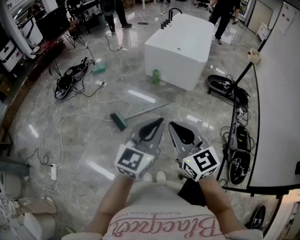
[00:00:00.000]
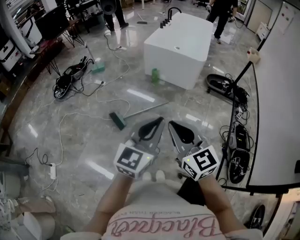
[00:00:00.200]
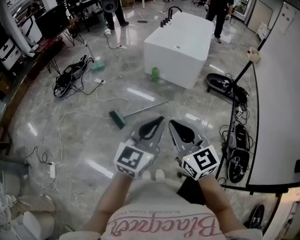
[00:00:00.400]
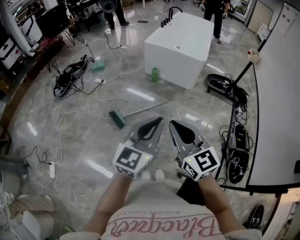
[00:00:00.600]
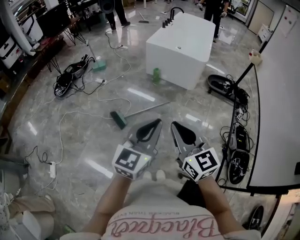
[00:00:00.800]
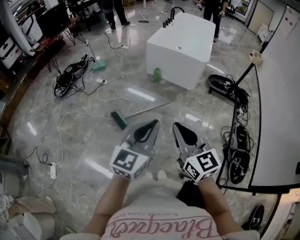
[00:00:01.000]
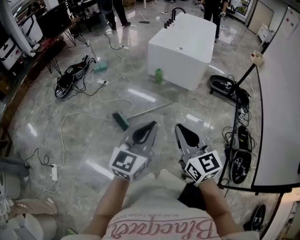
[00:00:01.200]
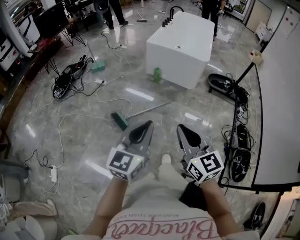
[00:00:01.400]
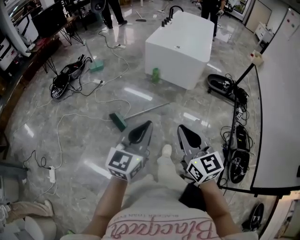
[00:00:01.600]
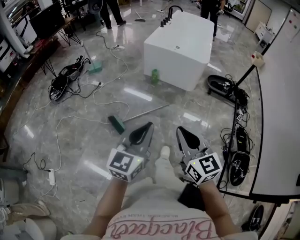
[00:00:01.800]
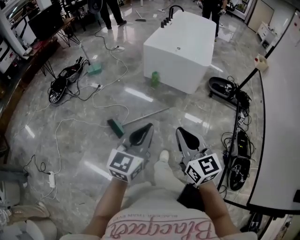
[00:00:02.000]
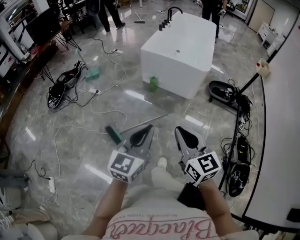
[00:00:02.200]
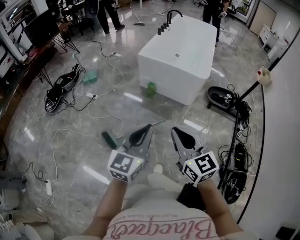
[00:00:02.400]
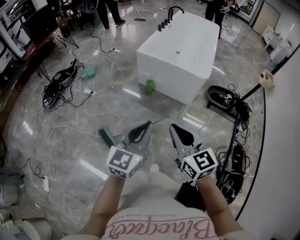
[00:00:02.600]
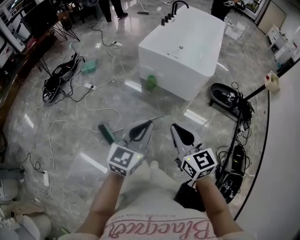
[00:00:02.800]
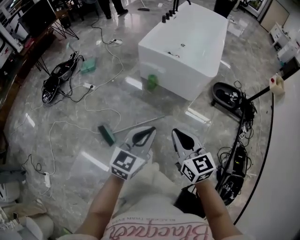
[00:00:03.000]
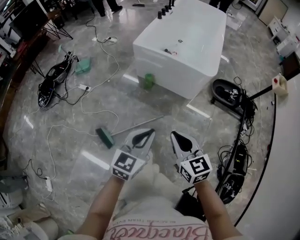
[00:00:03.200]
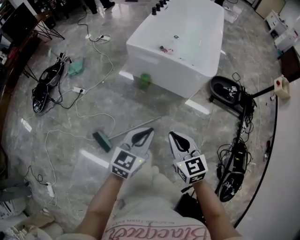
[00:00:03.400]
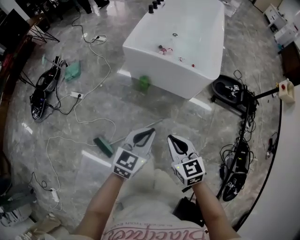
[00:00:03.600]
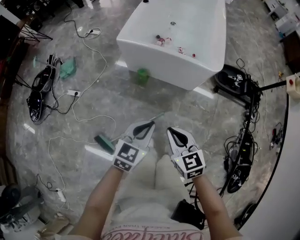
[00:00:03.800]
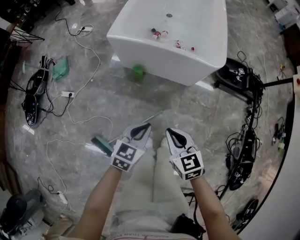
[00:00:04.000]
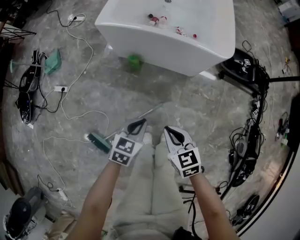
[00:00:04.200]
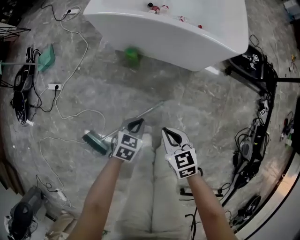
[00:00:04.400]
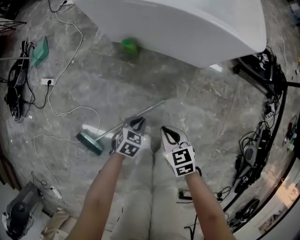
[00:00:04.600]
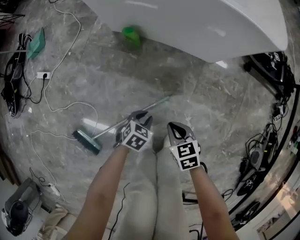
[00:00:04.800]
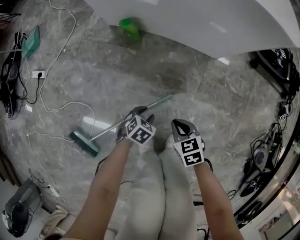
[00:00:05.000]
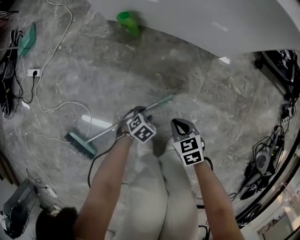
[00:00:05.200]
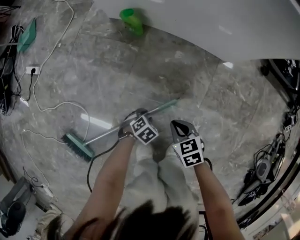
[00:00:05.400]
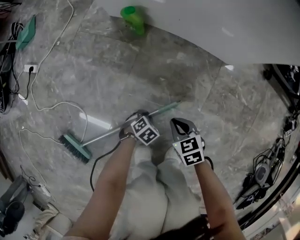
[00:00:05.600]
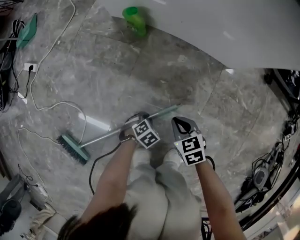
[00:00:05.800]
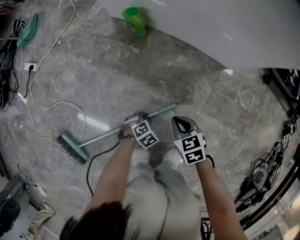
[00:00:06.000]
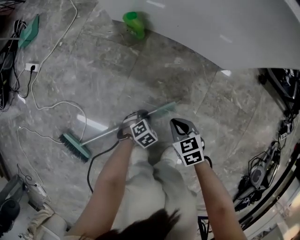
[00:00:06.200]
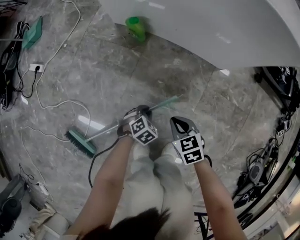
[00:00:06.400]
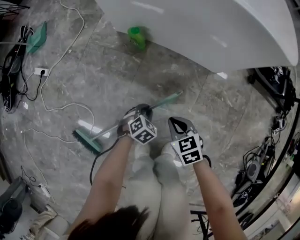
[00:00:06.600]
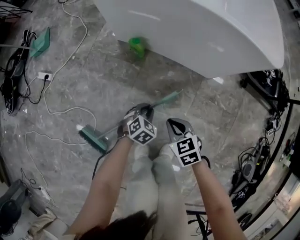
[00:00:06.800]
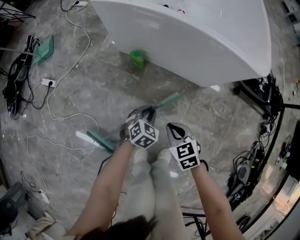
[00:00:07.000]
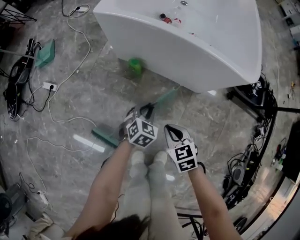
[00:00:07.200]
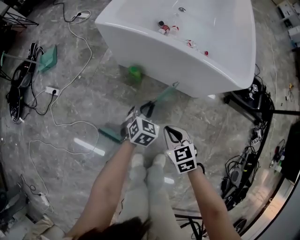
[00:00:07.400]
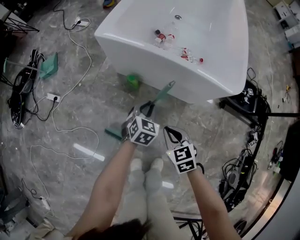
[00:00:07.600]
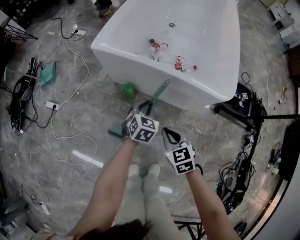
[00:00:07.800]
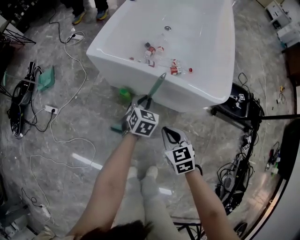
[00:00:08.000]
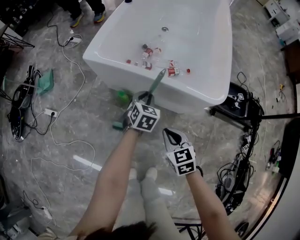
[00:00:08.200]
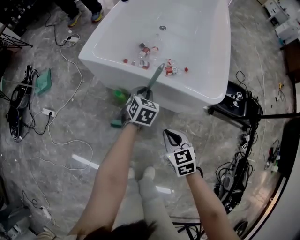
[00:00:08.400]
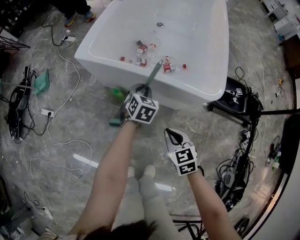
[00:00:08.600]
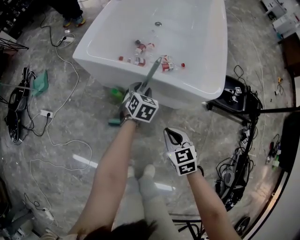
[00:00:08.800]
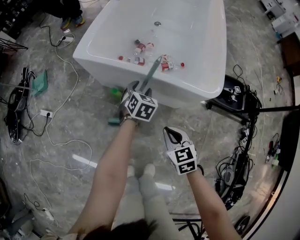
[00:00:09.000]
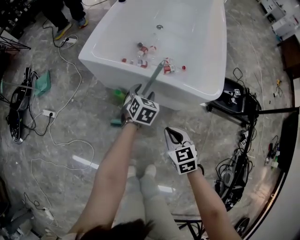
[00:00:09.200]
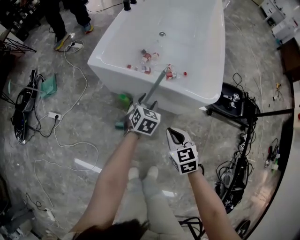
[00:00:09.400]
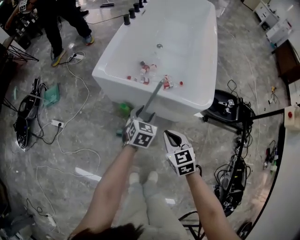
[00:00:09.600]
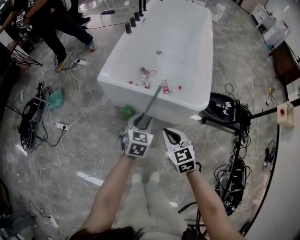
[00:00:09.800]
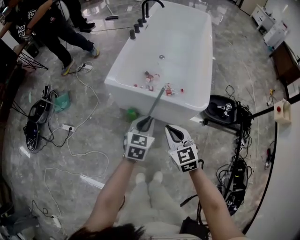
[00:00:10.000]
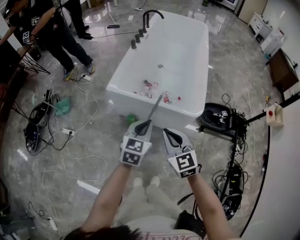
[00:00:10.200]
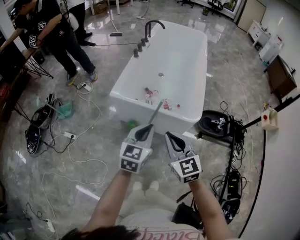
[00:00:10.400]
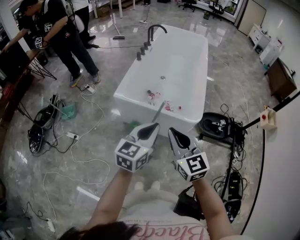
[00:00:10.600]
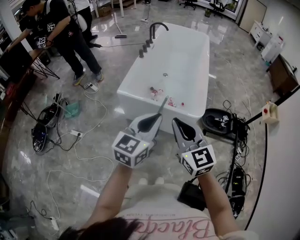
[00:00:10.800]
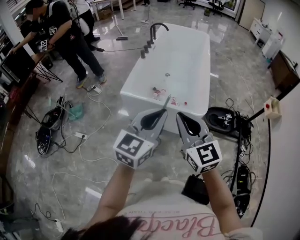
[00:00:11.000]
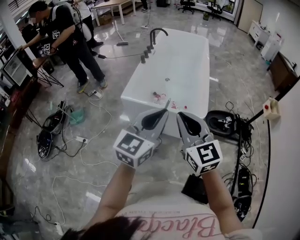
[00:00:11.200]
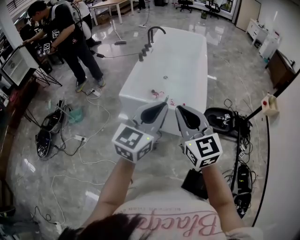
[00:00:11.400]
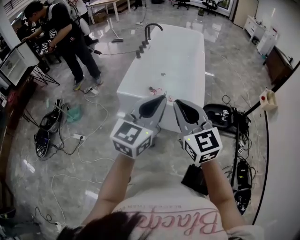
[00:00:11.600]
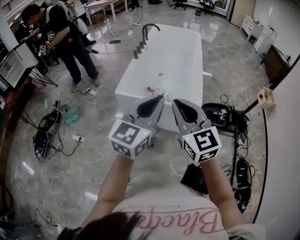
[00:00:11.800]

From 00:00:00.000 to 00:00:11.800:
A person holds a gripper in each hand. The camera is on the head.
From 00:00:00.000 to 00:00:01.400: The left gripper is displaced to the left by about 10 cm.
From 00:00:01.400 to 00:00:03.000: The left gripper travels forward and to the right by roughly 30 cm, while the right gripper is displaced forward by roughly 25 cm.
From 00:00:03.000 to 00:00:04.400: Both grippers travel together downward and forward, approximately 40 cm. The right gripper swivels approximately 30 degrees. Meanwhile the left gripper angles its fingers downward, by approximately 40 degrees.
From 00:00:04.400 to 00:00:06.000: Both grippers travel together downward, approximately 35 cm. The left gripper changes its angle by about 30 degrees.
From 00:00:06.000 to 00:00:07.400: The two grippers go approximately 30 cm upward. The left gripper angles its fingers upward, by approximately 30 degrees.
From 00:00:07.400 to 00:00:08.800: The left gripper travels forward, to the right and upward by some 20 cm. The right gripper is displaced to the right, upward and forward by approximately 10 cm.
From 00:00:08.800 to 00:00:10.400: The right gripper heads upward, covering roughly 30 cm, and rotates approximately 30 degrees. Meanwhile the left gripper heads upward and backward, covering about 40 cm, rotates some 30 degrees, and closes up.
From 00:00:10.400 to 00:00:11.800: Both grippers travel together upward, about 15 cm. The left gripper turns by roughly 20 degrees.

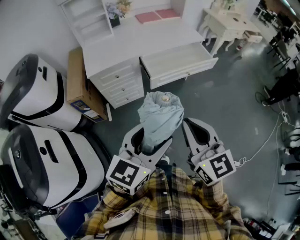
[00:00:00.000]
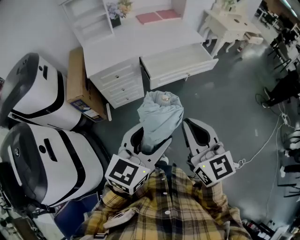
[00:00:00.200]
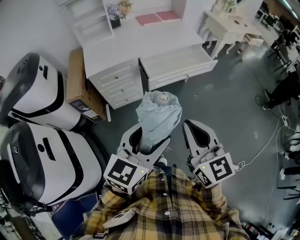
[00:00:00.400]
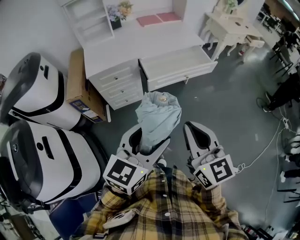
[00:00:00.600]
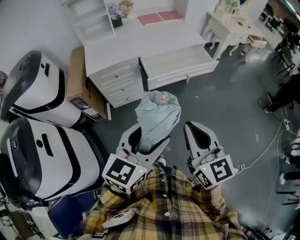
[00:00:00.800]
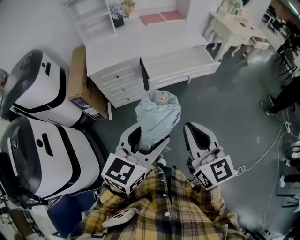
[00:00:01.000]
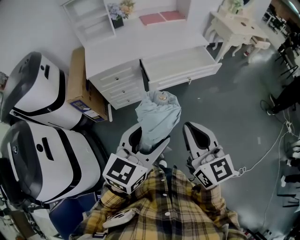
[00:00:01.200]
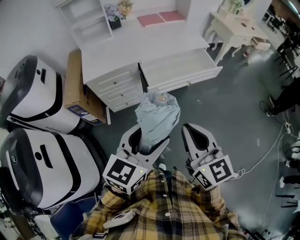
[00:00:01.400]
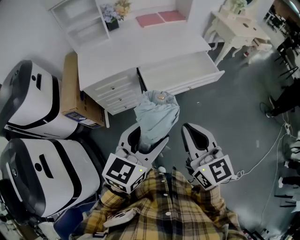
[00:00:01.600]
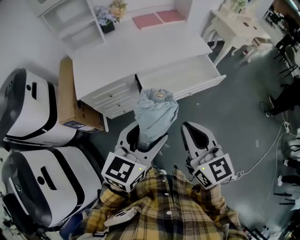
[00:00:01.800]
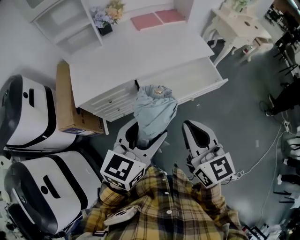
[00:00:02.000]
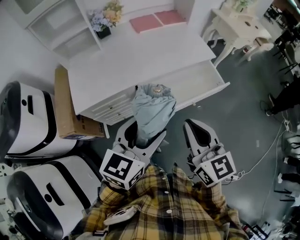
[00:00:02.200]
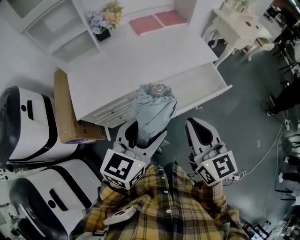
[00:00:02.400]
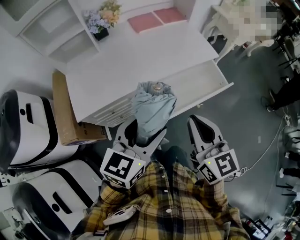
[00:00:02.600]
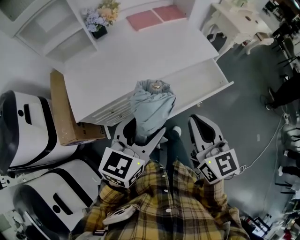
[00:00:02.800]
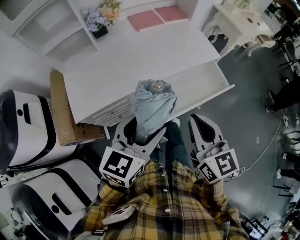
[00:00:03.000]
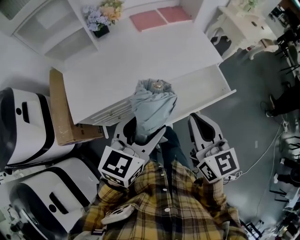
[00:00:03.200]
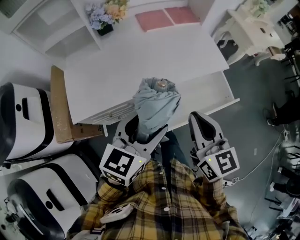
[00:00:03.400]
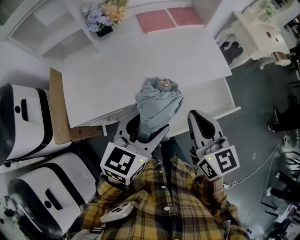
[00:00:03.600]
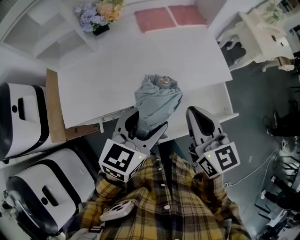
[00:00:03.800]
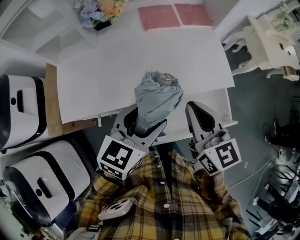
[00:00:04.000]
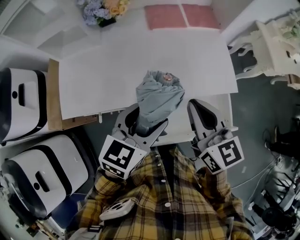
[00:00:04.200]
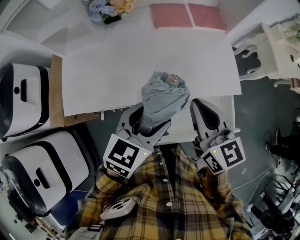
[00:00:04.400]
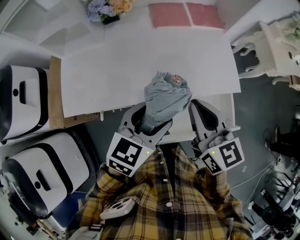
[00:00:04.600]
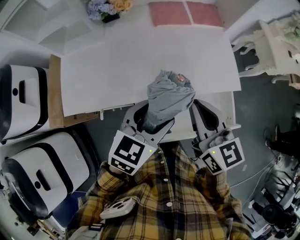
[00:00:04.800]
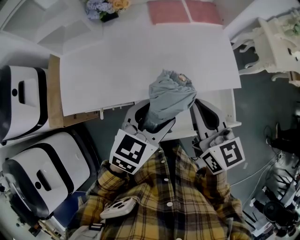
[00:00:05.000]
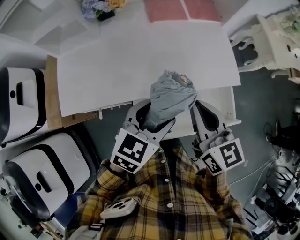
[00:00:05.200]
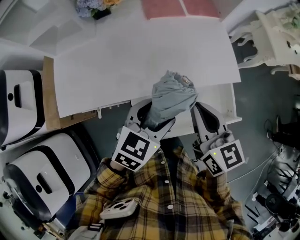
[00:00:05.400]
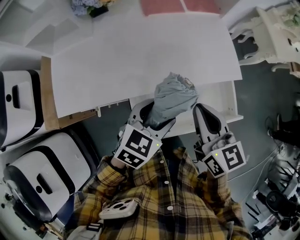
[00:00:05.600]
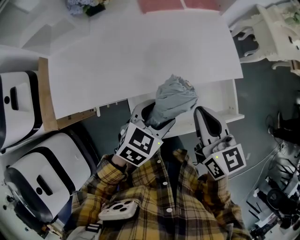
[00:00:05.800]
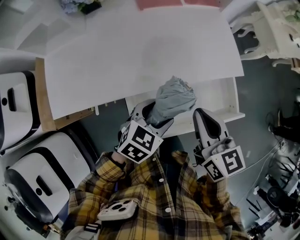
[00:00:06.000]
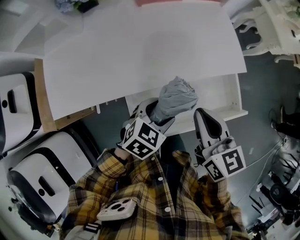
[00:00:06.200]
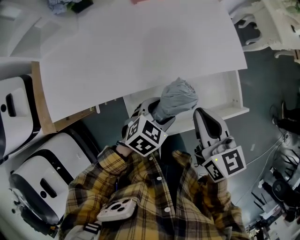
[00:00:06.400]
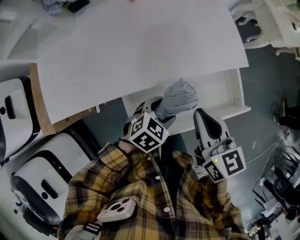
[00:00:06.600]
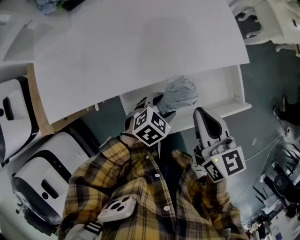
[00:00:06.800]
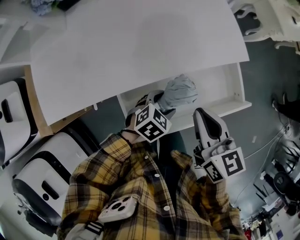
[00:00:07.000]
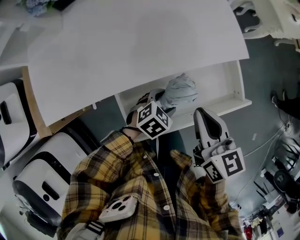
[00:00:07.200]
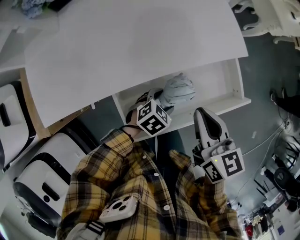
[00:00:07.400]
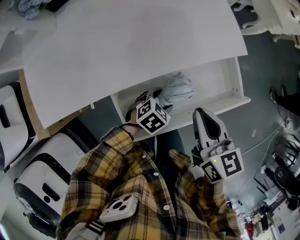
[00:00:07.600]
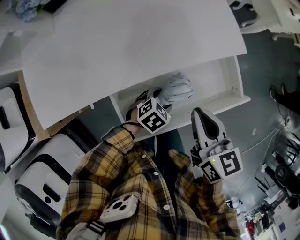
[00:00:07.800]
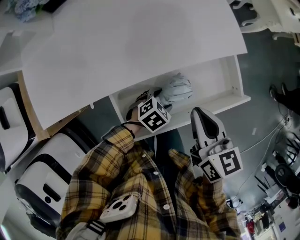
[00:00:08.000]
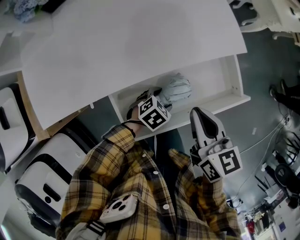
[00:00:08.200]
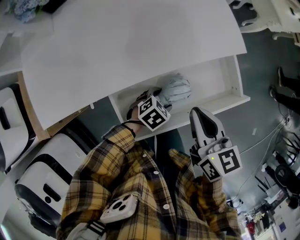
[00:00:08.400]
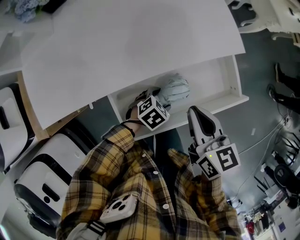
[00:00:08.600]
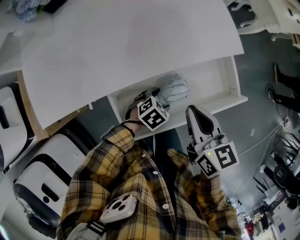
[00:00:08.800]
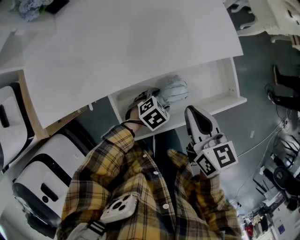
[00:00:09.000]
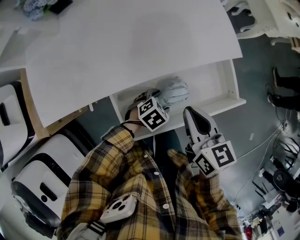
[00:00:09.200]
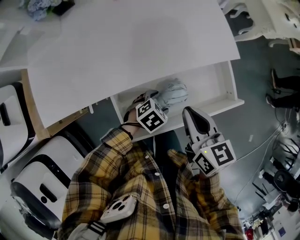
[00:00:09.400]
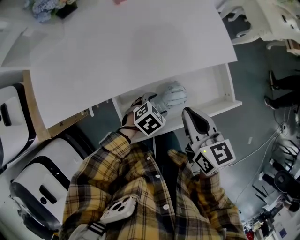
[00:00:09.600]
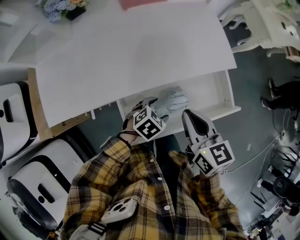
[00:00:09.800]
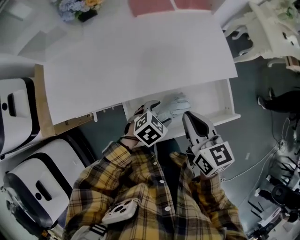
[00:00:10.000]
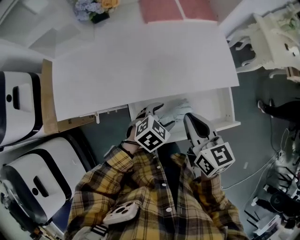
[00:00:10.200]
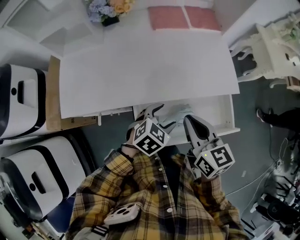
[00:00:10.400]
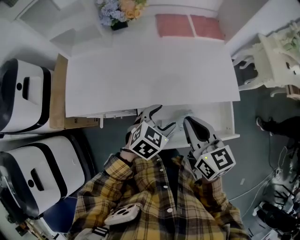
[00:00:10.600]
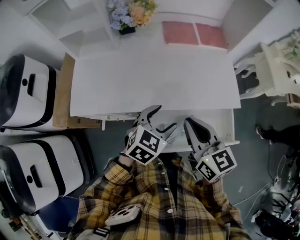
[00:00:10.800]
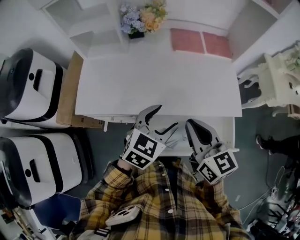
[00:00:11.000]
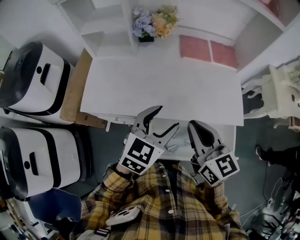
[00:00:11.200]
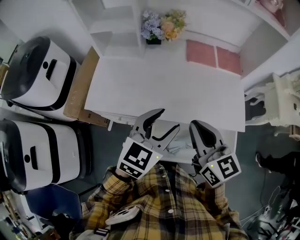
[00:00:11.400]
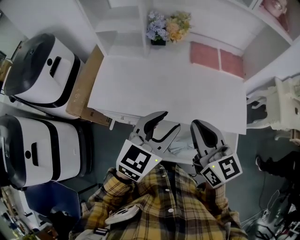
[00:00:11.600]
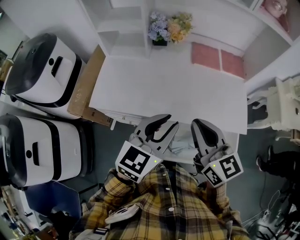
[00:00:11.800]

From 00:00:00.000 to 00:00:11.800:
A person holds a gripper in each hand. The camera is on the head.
From 00:00:00.000 to 00:00:01.400: The grippers both shift forward by some 5 cm.
From 00:00:01.400 to 00:00:03.000: The grippers both shift forward by roughly 30 cm.
From 00:00:03.000 to 00:00:04.400: Both grippers travel together forward, roughly 20 cm. The right gripper changes its angle by roughly 20 degrees.
From 00:00:04.400 to 00:00:06.000: The right gripper travels downward by about 10 cm, while the left gripper shifts approximately 15 cm downward, and rotates some 20 degrees.
From 00:00:06.000 to 00:00:07.400: The left gripper moves downward, some 15 cm, and rotates roughly 20 degrees. Meanwhile the right gripper goes some 5 cm downward.
From 00:00:07.400 to 00:00:08.800: The grippers make only small movements.
From 00:00:08.800 to 00:00:10.400: The left gripper travels upward by roughly 20 cm, and swivels roughly 30 degrees; the right gripper moves upward and to the left, about 10 cm.
From 00:00:10.400 to 00:00:11.800: The left gripper is displaced upward and to the left by some 25 cm, angles its fingers upward, by approximately 30 degrees, and closes, while the right gripper is displaced upward and to the left by approximately 15 cm, and changes its angle by approximately 30 degrees.
